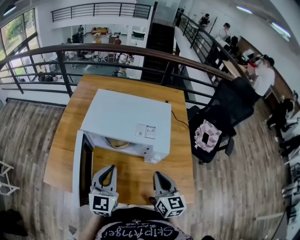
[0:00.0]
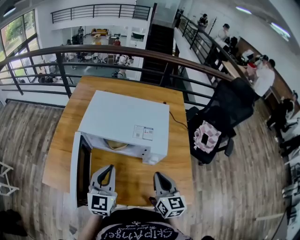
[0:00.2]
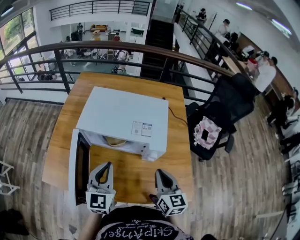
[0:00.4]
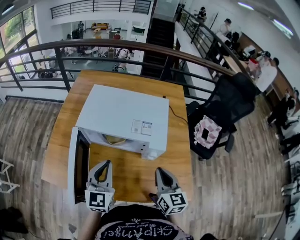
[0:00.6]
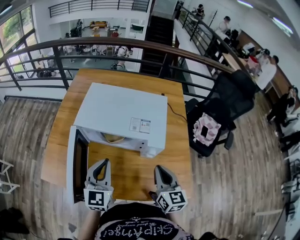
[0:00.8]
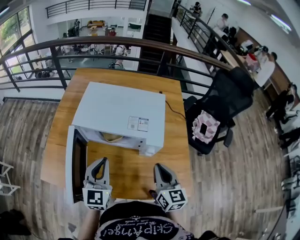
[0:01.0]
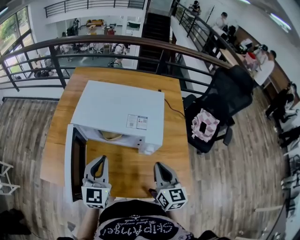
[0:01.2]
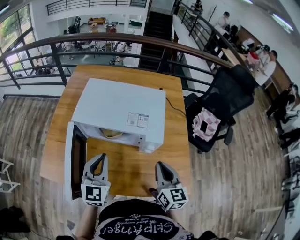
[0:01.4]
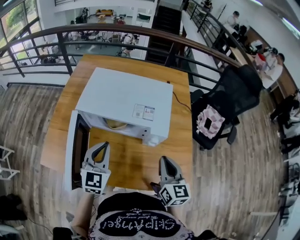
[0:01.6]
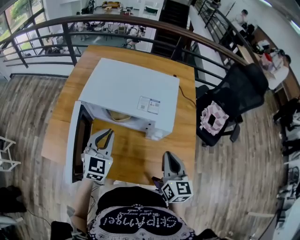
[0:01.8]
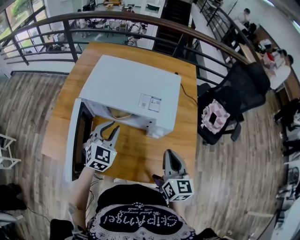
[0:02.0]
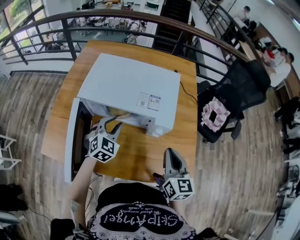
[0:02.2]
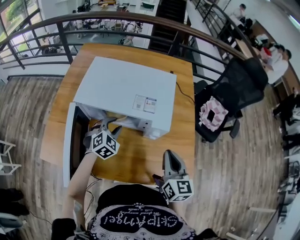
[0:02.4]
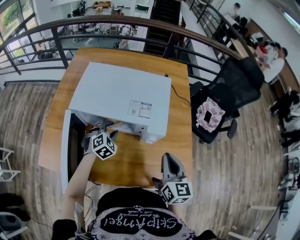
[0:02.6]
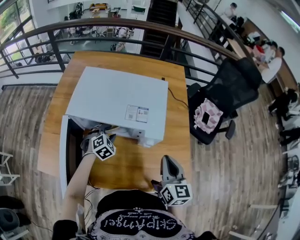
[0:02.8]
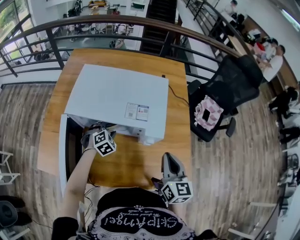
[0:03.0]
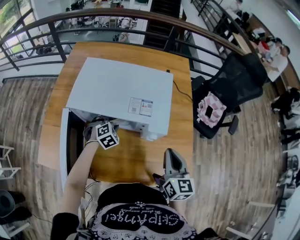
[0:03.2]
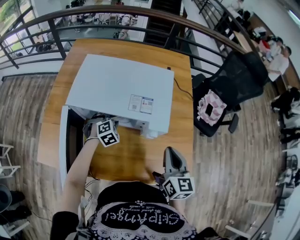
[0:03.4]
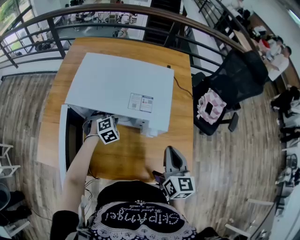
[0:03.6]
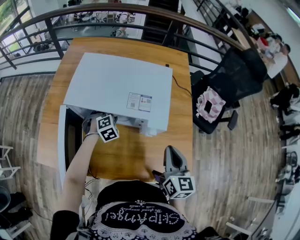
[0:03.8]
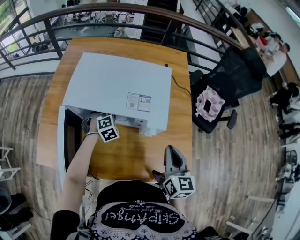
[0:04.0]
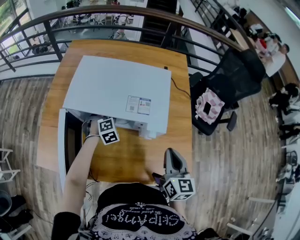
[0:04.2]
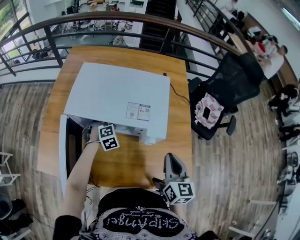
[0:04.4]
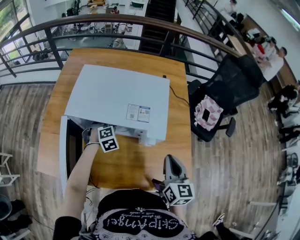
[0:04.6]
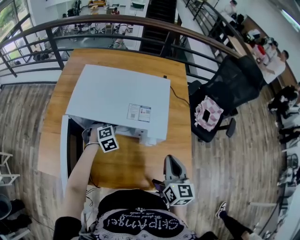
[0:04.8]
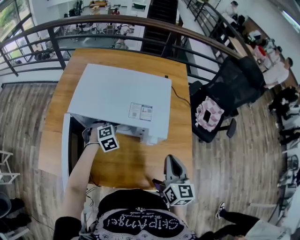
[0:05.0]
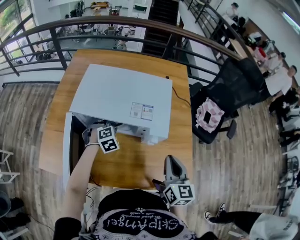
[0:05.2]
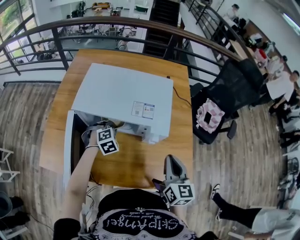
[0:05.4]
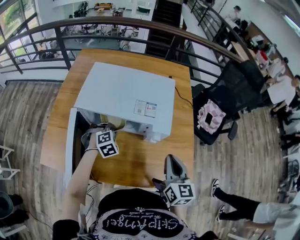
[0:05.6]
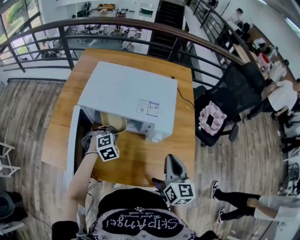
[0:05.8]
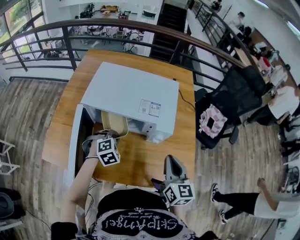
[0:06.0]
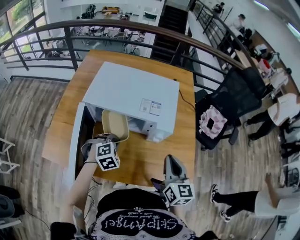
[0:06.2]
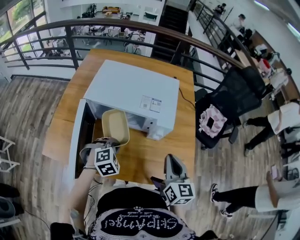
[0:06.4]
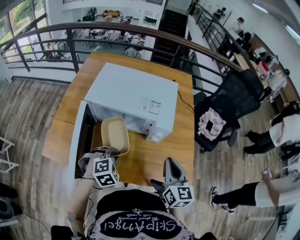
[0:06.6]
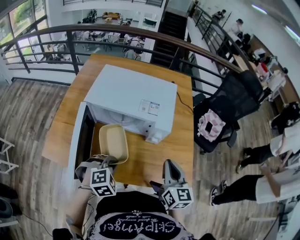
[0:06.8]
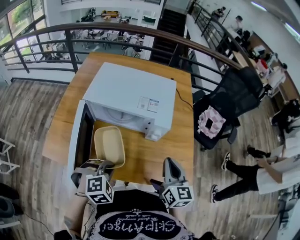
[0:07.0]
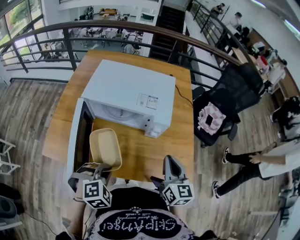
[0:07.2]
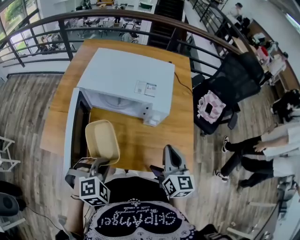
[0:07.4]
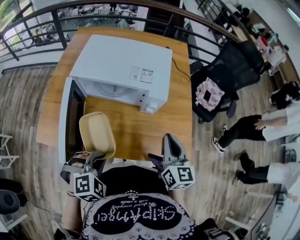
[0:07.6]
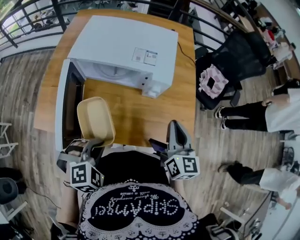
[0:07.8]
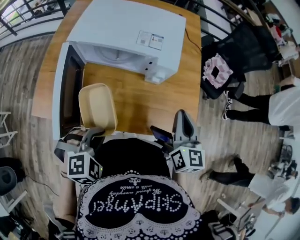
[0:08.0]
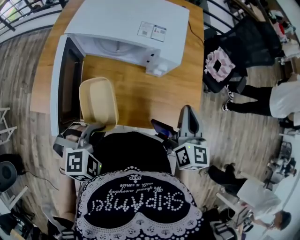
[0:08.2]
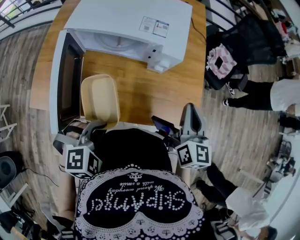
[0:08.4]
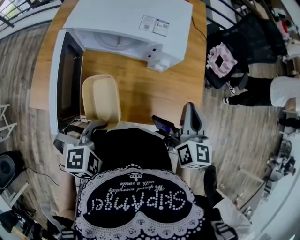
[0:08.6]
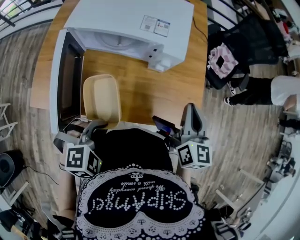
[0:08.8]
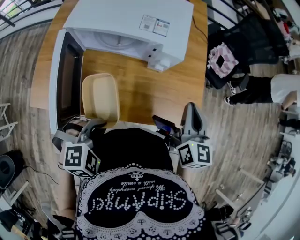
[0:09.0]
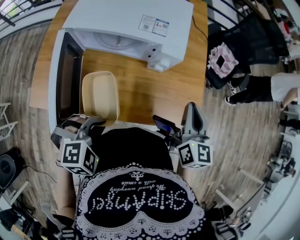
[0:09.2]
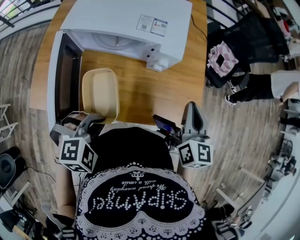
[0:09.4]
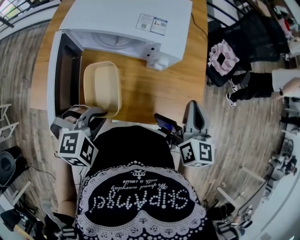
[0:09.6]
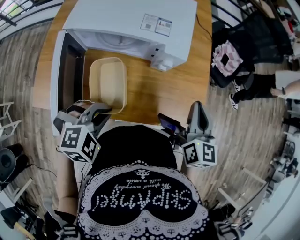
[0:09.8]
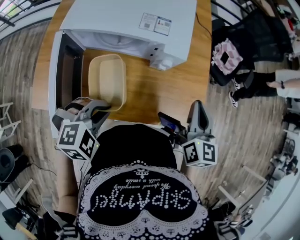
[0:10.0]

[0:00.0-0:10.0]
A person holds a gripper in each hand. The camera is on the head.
0:00.0 to 0:01.4: The grippers make only small movements.
0:01.4 to 0:02.8: The left gripper goes about 25 cm downward and forward, tilts its fingers about 40 degrees downward, and opens.
0:02.8 to 0:04.2: The left gripper closes.
0:04.2 to 0:05.8: The left gripper shifts some 10 cm backward.
0:05.8 to 0:07.2: The left gripper shifts roughly 25 cm backward and upward.
0:07.2 to 0:08.6: The grippers move only a little.
0:08.6 to 0:10.0: The left gripper goes about 5 cm forward.

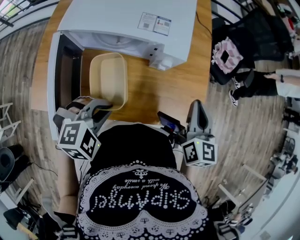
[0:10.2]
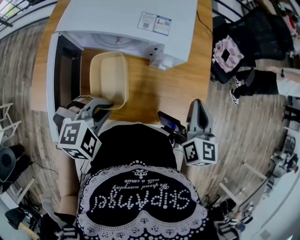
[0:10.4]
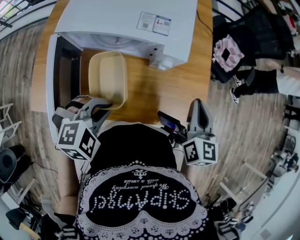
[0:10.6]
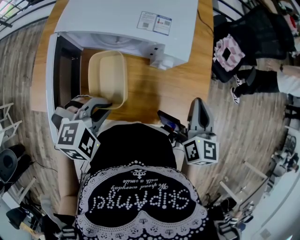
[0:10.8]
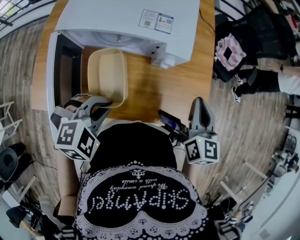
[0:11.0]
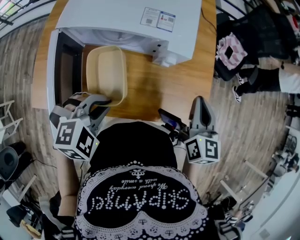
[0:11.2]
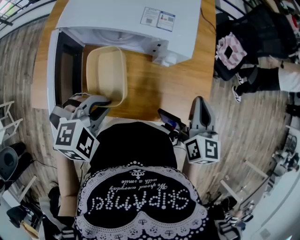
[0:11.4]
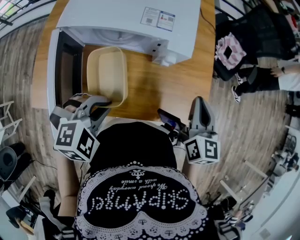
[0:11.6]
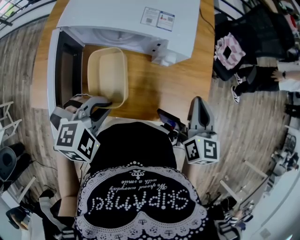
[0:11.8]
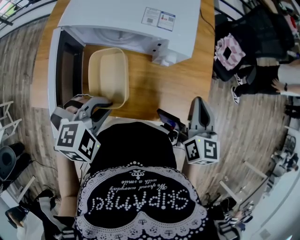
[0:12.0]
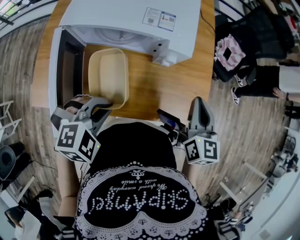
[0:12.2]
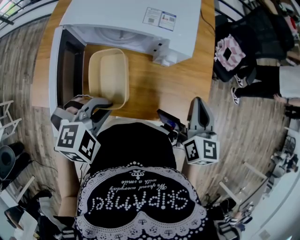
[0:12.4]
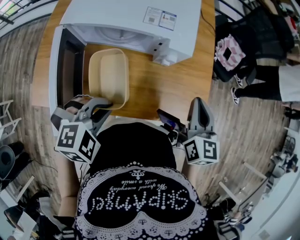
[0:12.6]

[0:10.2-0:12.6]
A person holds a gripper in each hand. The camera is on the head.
0:10.2 to 0:12.6: There are only small adjustments of the grippers.

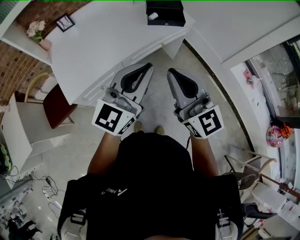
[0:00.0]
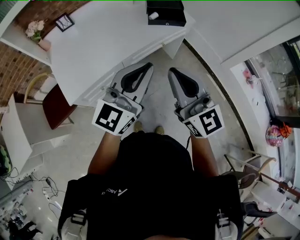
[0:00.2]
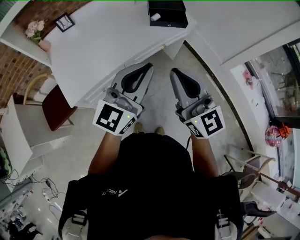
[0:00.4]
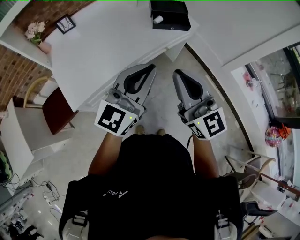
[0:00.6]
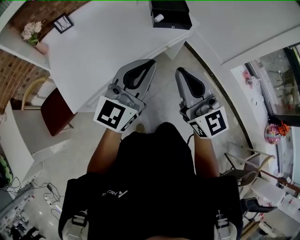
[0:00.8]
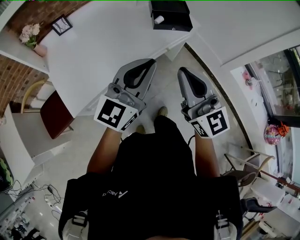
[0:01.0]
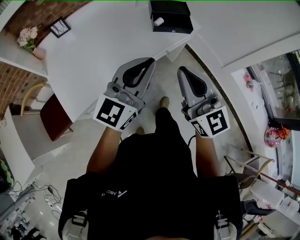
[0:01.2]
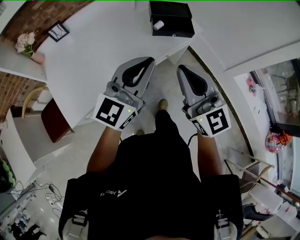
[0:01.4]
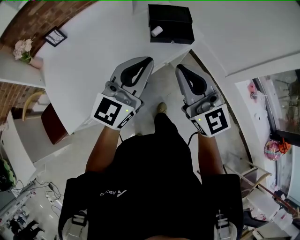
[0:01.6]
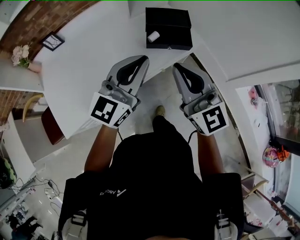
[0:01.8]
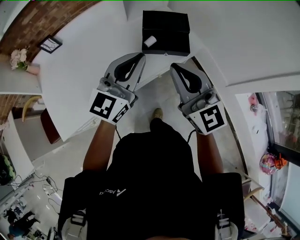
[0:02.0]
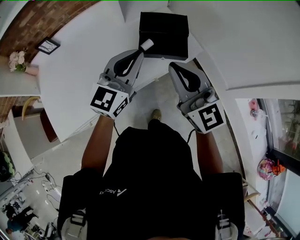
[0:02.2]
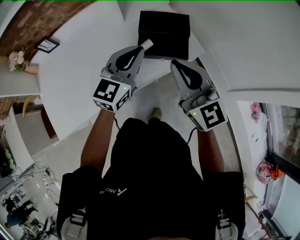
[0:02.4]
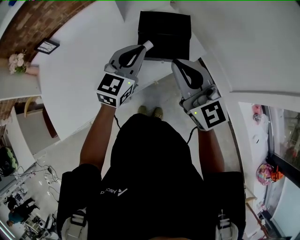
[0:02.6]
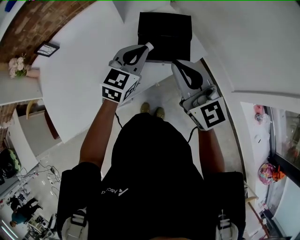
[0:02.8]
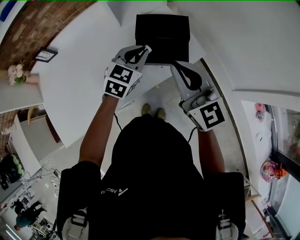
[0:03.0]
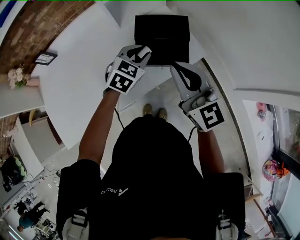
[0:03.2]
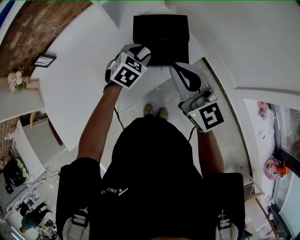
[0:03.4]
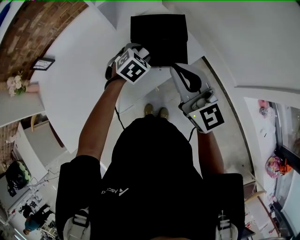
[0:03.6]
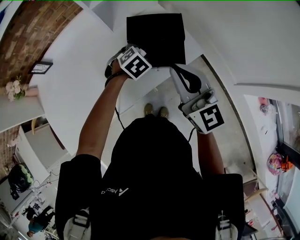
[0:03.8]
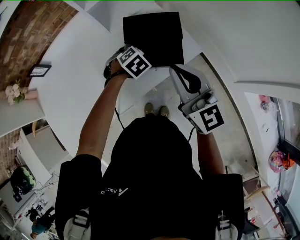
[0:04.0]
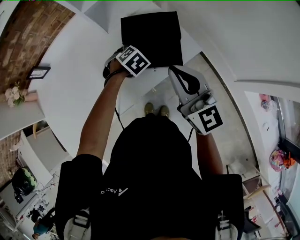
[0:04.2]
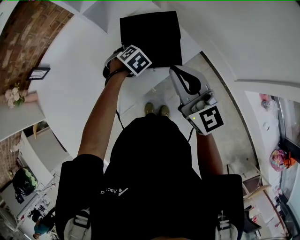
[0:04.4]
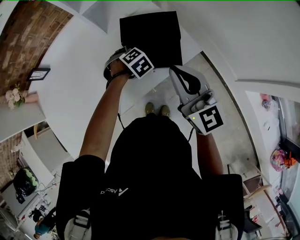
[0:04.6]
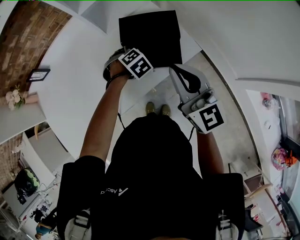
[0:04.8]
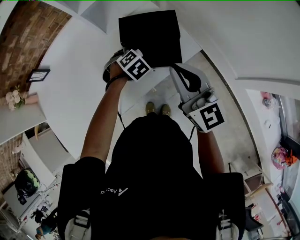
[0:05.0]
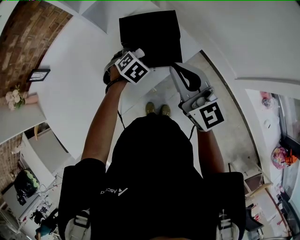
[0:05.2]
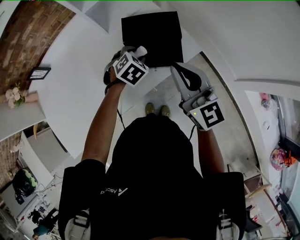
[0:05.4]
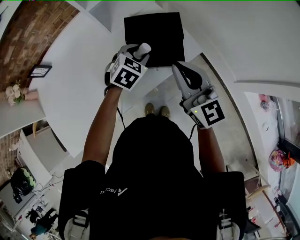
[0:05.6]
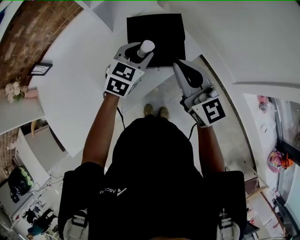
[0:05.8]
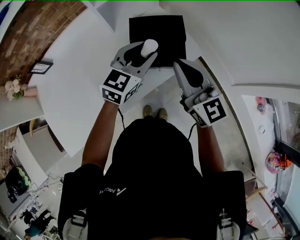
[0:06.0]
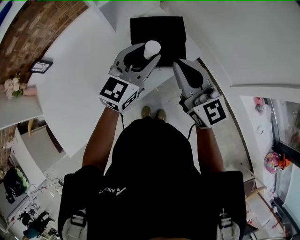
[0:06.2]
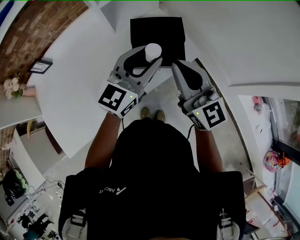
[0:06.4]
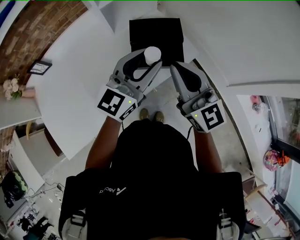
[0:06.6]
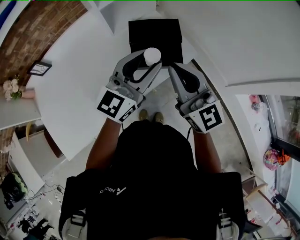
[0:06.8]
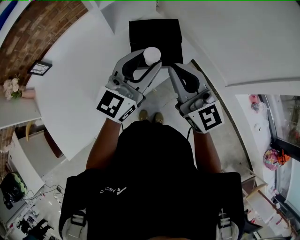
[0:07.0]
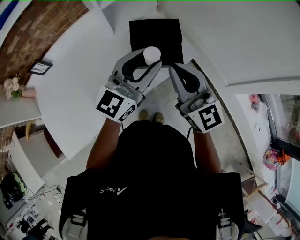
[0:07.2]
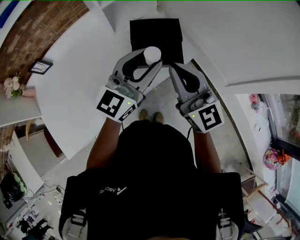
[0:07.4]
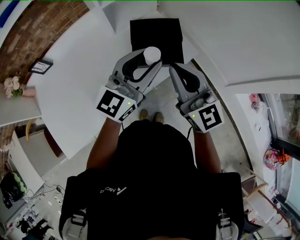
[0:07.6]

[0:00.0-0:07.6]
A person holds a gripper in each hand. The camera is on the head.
0:00.0 to 0:01.6: Both grippers move forward, roughly 20 cm.
0:01.6 to 0:03.0: The right gripper is displaced forward and to the right by about 25 cm, while the left gripper travels forward and downward by about 35 cm, and points its fingers some 40 degrees further downward.
0:03.0 to 0:04.6: The left gripper goes about 20 cm downward, angles its fingers downward, by some 50 degrees, and opens up. Meanwhile the right gripper shifts by about 5 cm.
0:04.6 to 0:06.0: The left gripper heads upward, covering about 20 cm, and angles its fingers upward, by about 60 degrees.
0:06.0 to 0:07.6: The right gripper shifts roughly 5 cm backward. The left gripper is displaced upward and backward by roughly 15 cm, and turns by some 30 degrees.

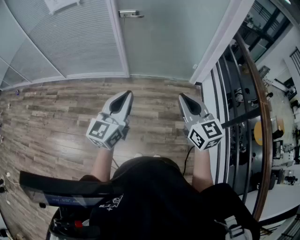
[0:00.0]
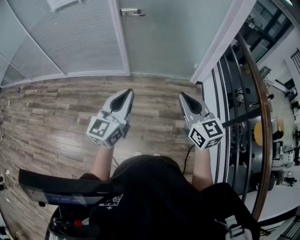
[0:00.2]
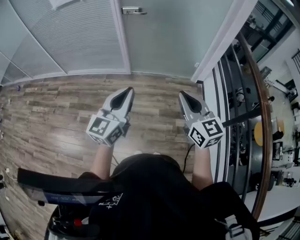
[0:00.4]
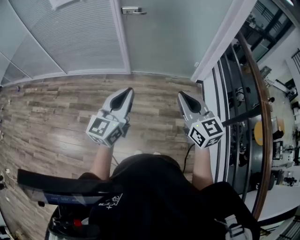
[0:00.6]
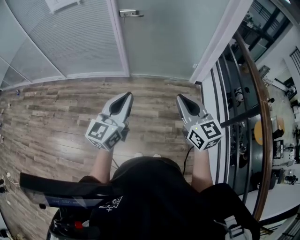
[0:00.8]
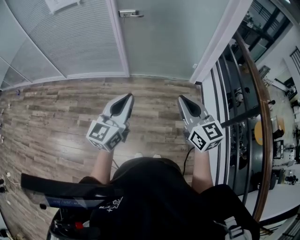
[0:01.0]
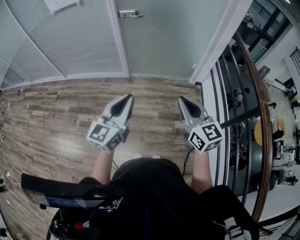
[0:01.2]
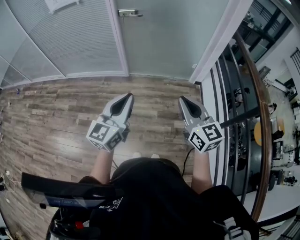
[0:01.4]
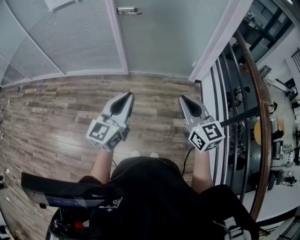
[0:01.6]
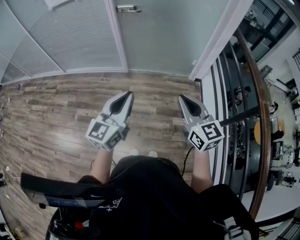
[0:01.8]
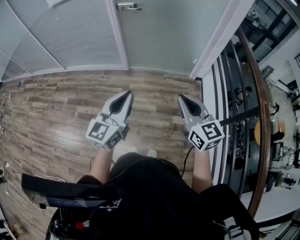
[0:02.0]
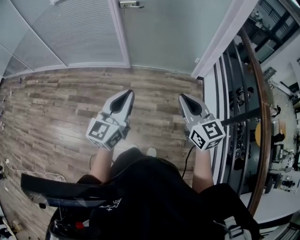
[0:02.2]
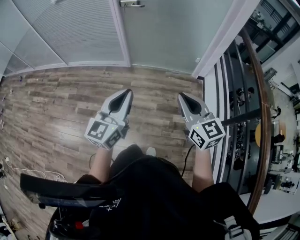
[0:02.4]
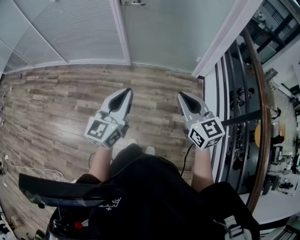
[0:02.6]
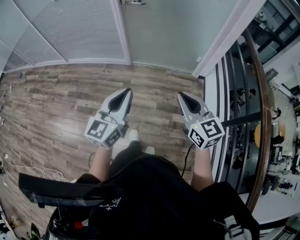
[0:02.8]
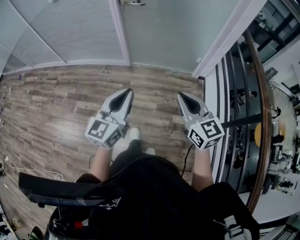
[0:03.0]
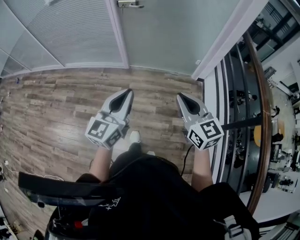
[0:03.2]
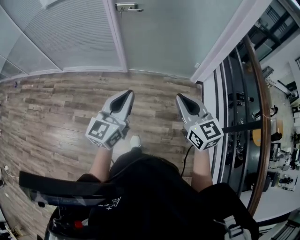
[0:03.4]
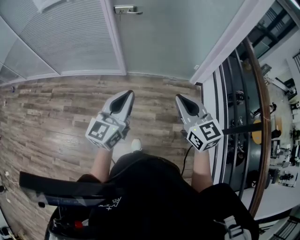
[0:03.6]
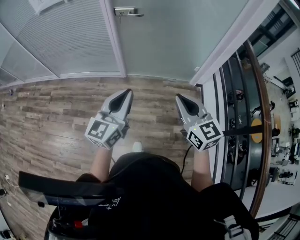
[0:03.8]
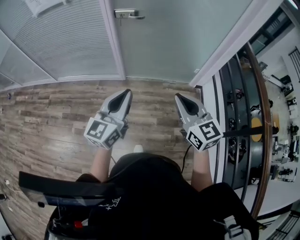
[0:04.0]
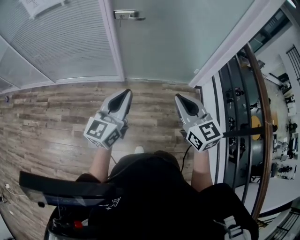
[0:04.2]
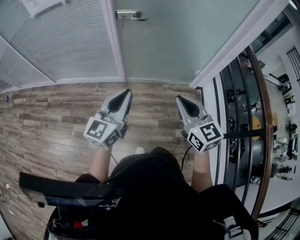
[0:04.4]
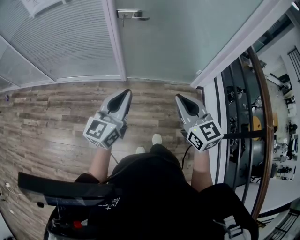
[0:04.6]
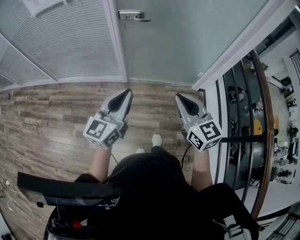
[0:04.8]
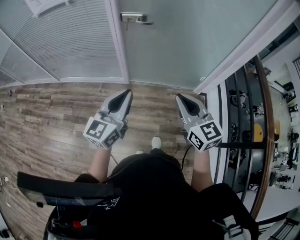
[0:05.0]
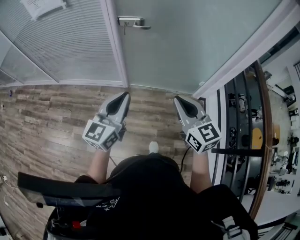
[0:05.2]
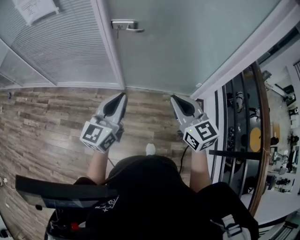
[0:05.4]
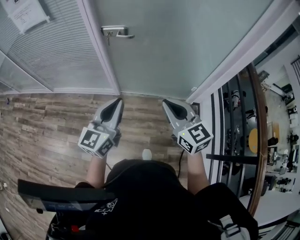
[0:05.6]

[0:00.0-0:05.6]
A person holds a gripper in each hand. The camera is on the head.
0:00.0 to 0:02.8: The grippers stay close to where they were, moving slightly.
0:02.8 to 0:04.2: Both grippers travel together forward and to the left, roughly 20 cm.
0:04.2 to 0:05.6: Both grippers move forward, roughly 10 cm.
